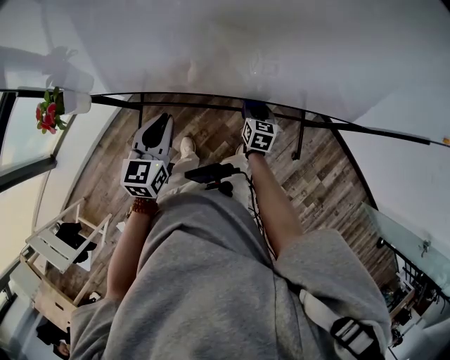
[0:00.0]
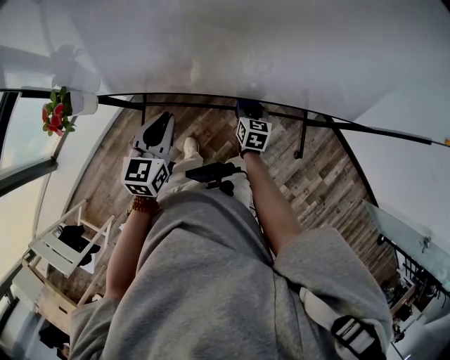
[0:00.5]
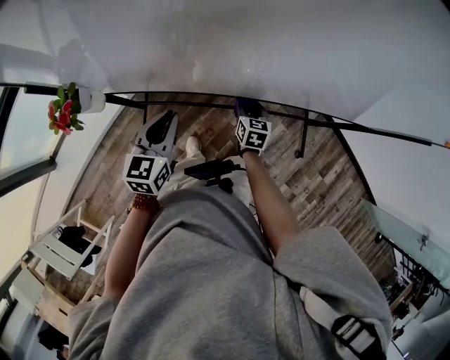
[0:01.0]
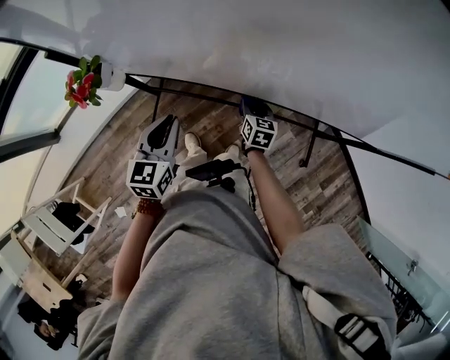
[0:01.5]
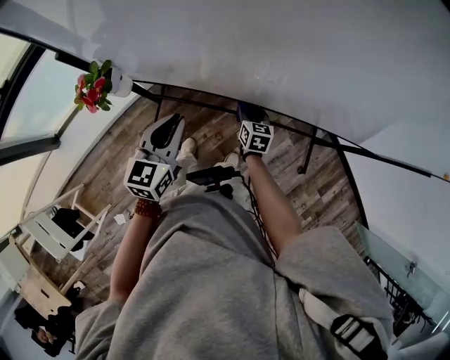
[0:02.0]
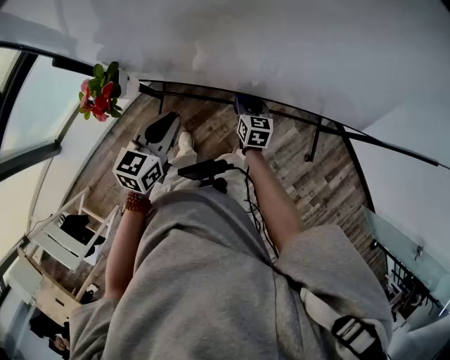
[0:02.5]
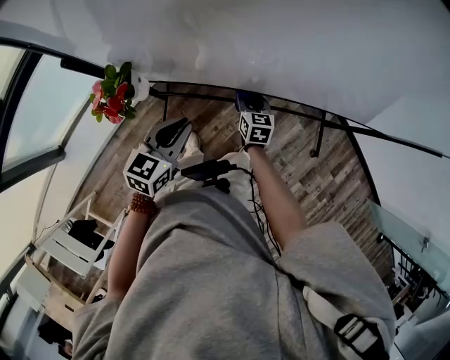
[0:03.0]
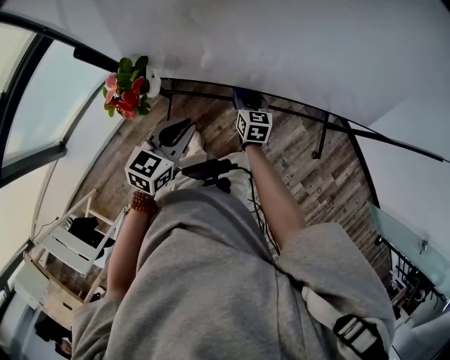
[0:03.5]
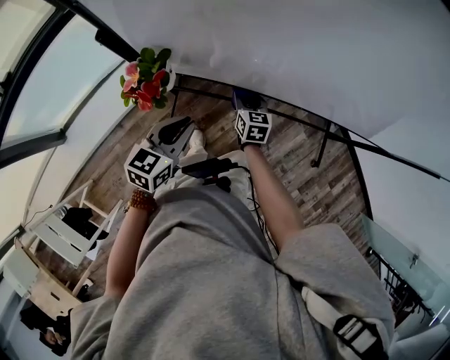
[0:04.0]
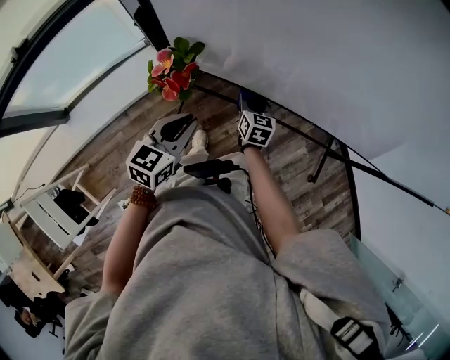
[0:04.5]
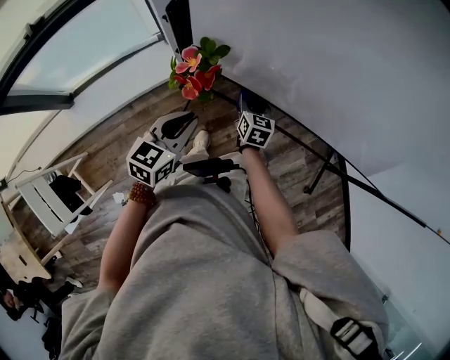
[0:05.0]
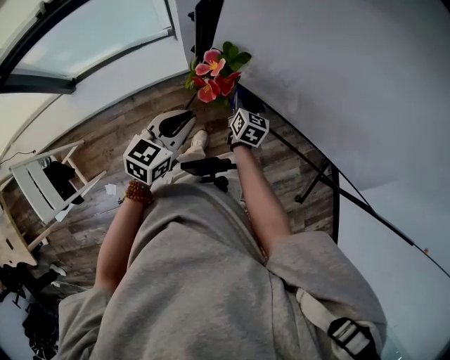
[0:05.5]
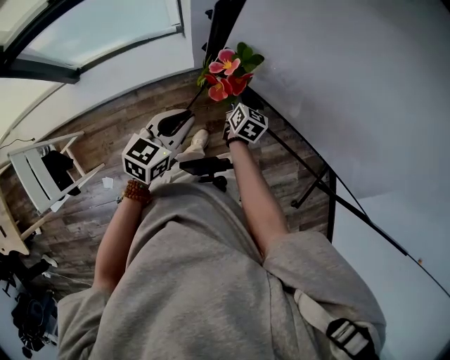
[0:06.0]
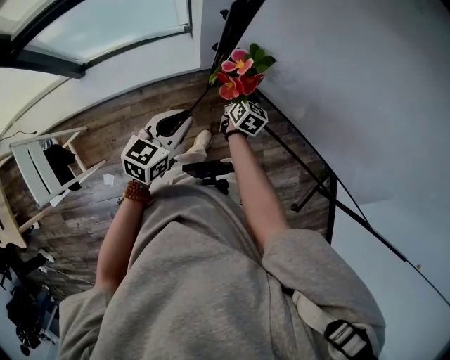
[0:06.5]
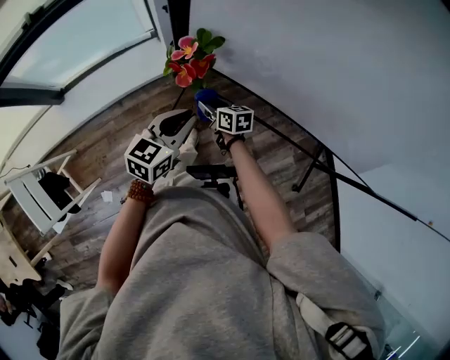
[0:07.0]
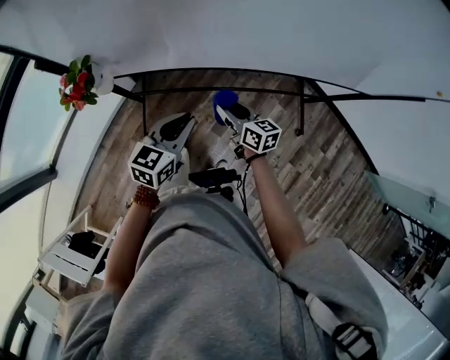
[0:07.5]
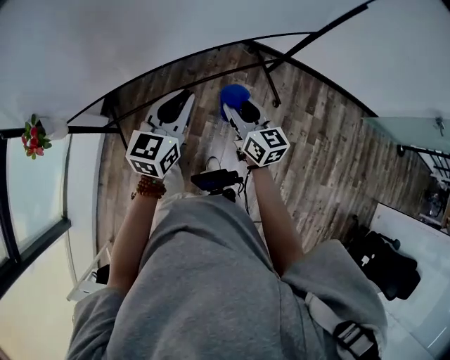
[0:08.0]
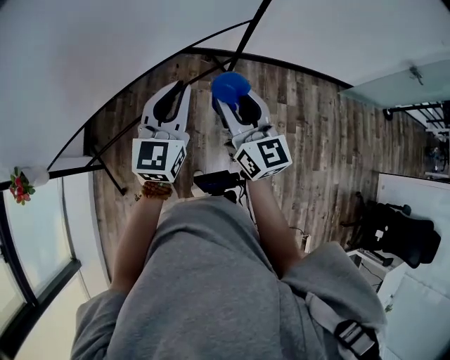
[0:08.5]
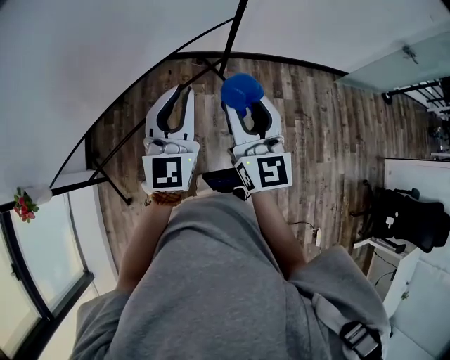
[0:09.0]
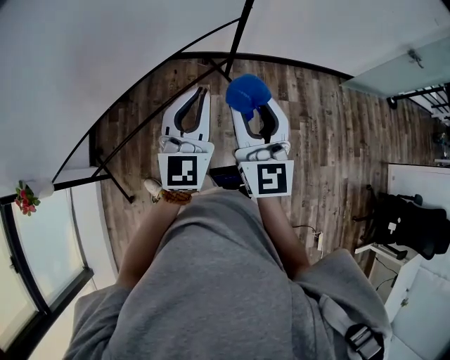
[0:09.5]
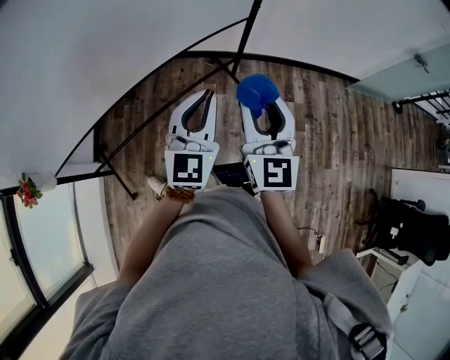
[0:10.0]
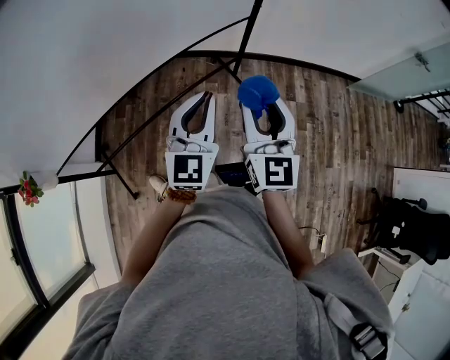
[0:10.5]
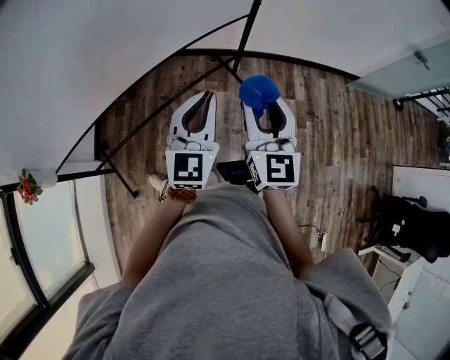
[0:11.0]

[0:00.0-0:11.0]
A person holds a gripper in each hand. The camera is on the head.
0:00.0 to 0:02.0: The right gripper travels to the left by approximately 20 cm; the left gripper shifts about 10 cm to the left.
0:02.0 to 0:03.5: The right gripper heads to the left, covering roughly 15 cm, while the left gripper shifts some 10 cm to the left and downward, and turns by approximately 20 degrees.
0:03.5 to 0:05.5: Both grippers move to the left, approximately 15 cm. The left gripper changes its angle by roughly 20 degrees.
0:05.5 to 0:07.5: The right gripper moves about 30 cm, and changes its angle by about 20 degrees; the left gripper changes place by approximately 25 cm, and turns by approximately 30 degrees.
0:07.5 to 0:09.0: The two grippers travel together, about 40 cm. The right gripper rotates about 70 degrees. The left gripper rotates about 40 degrees.
0:09.0 to 0:11.0: The left gripper moves some 5 cm.

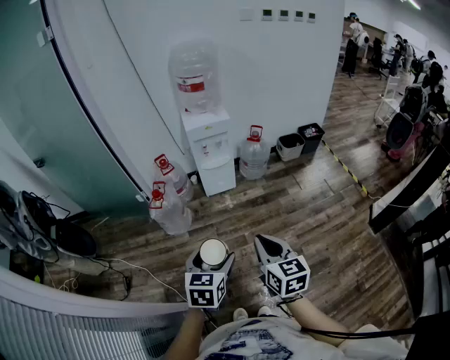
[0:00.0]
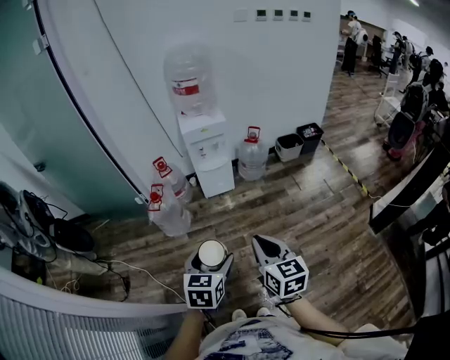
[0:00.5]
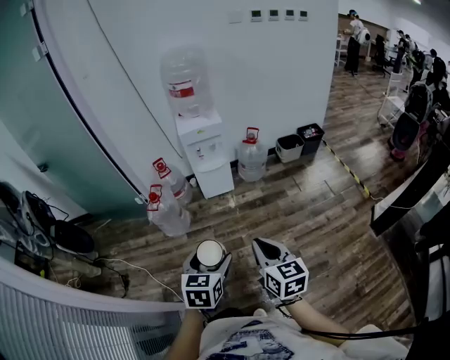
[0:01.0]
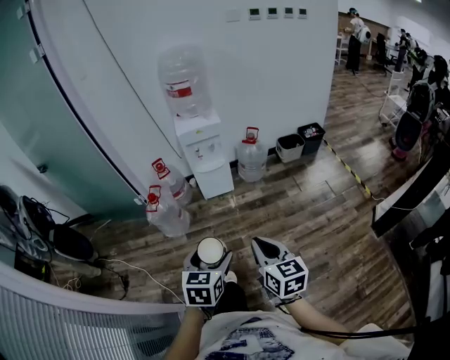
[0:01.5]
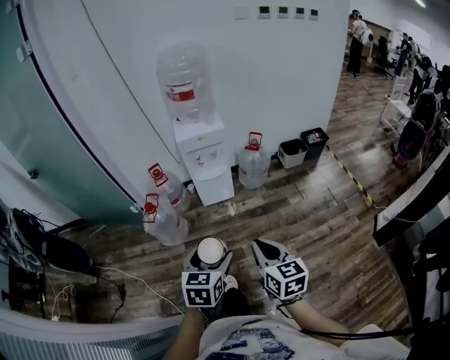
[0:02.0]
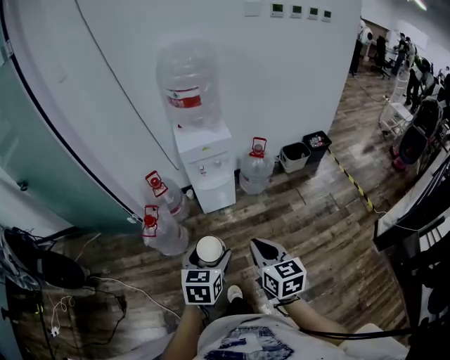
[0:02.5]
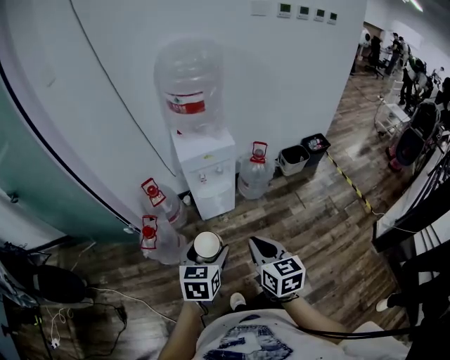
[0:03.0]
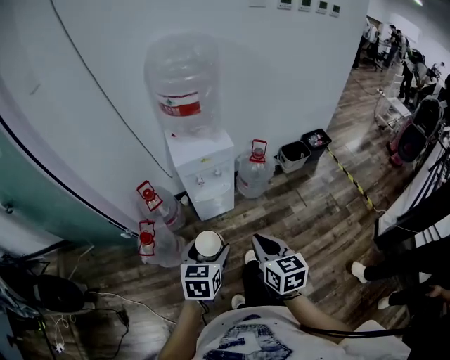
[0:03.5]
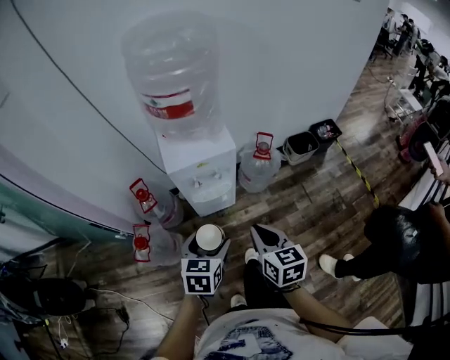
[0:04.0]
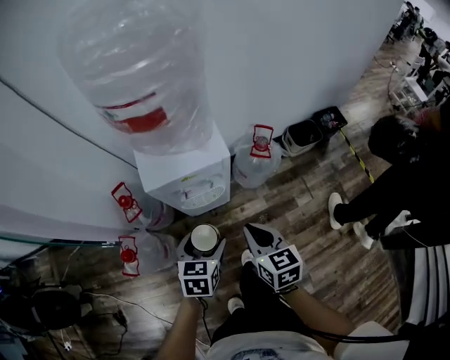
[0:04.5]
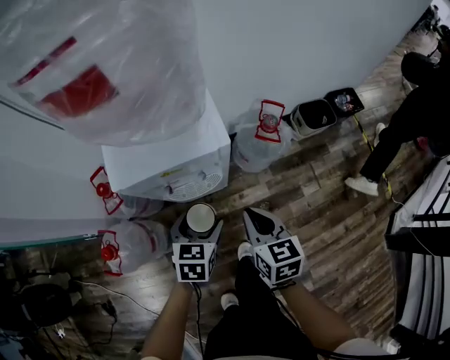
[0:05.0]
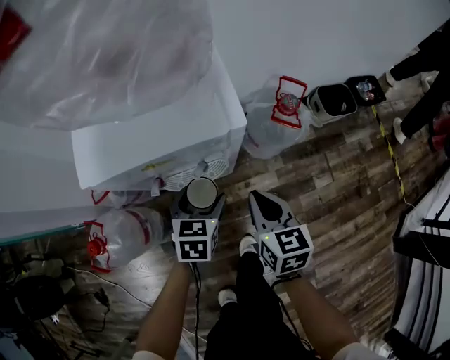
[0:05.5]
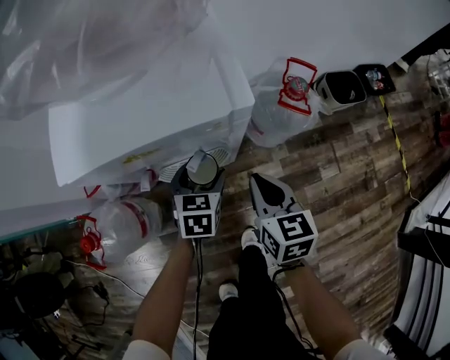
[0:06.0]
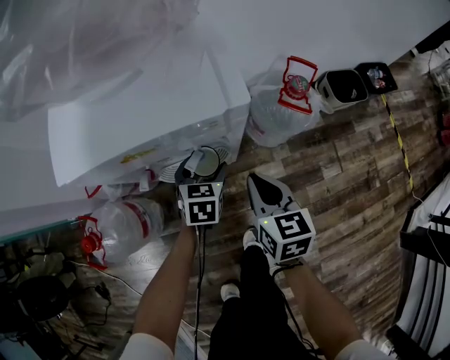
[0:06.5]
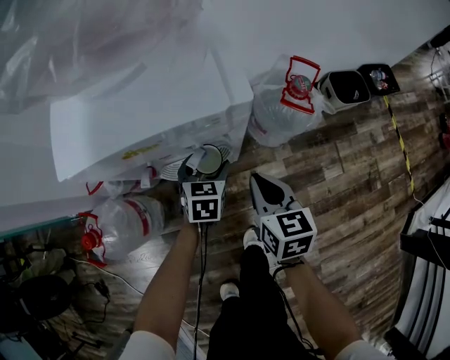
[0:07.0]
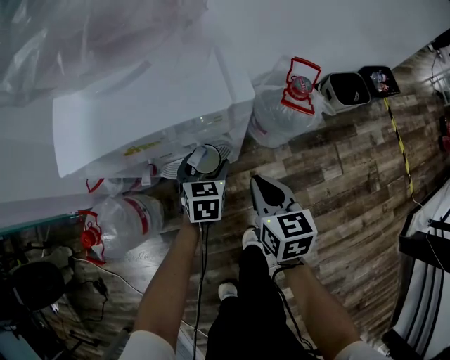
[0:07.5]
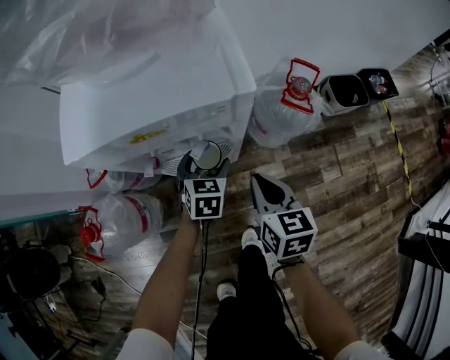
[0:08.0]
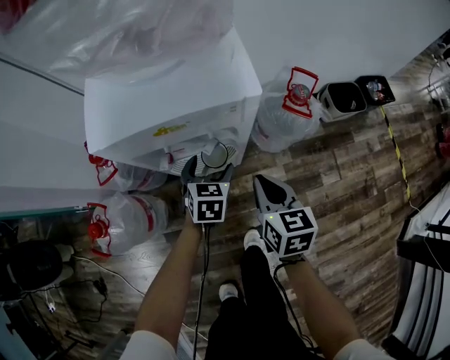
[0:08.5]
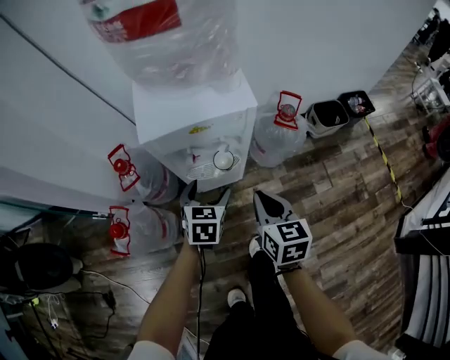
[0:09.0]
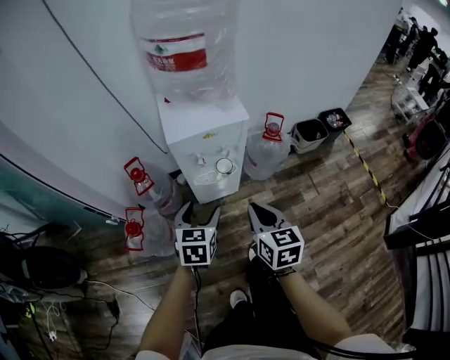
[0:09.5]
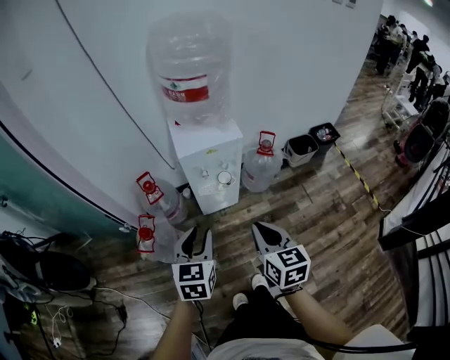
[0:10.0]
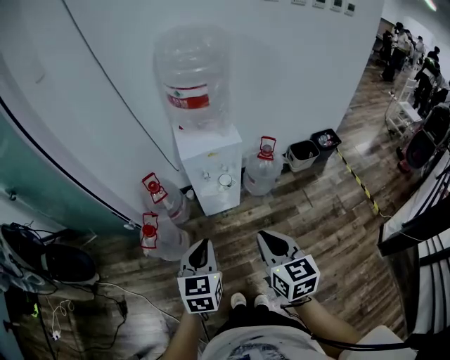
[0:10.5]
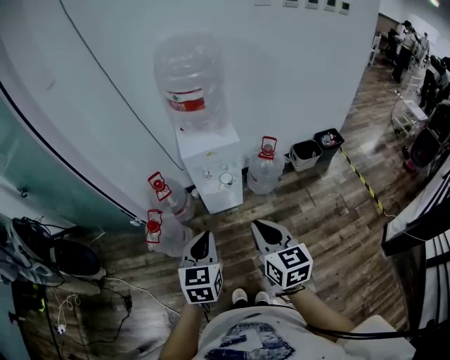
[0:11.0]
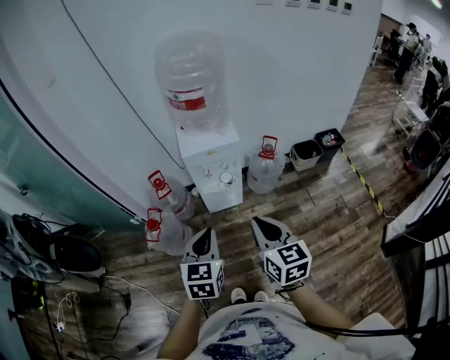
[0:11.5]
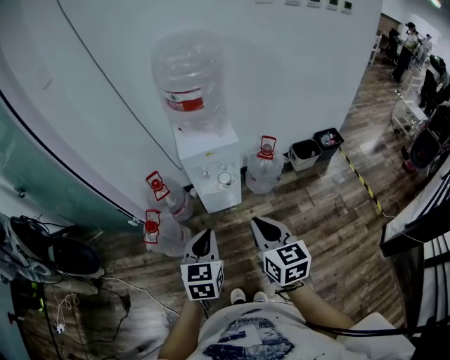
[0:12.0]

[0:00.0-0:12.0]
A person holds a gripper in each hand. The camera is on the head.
0:00.0 to 0:02.0: Both grippers travel together forward and to the right, about 15 cm.
0:02.0 to 0:04.0: Both grippers are carried forward, about 40 cm.
0:04.0 to 0:06.0: Both grippers travel together downward and forward, some 50 cm.
0:06.0 to 0:08.0: There are only small adjustments of the grippers.
0:08.0 to 0:10.0: The two grippers go approximately 60 cm upward and backward. The left gripper closes up.
0:10.0 to 0:12.0: The left gripper moves backward, to the right and upward, approximately 10 cm; the right gripper goes some 10 cm upward.

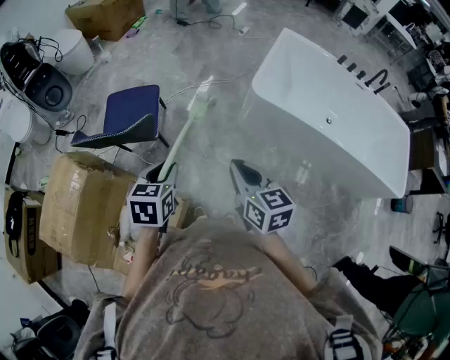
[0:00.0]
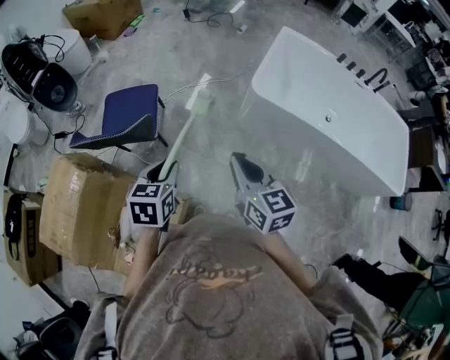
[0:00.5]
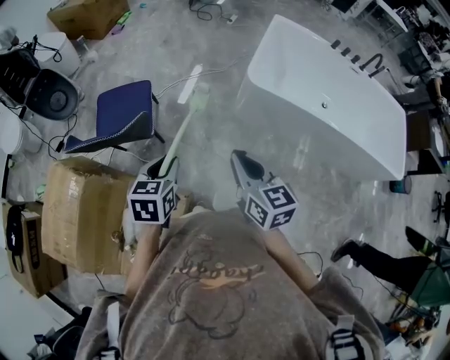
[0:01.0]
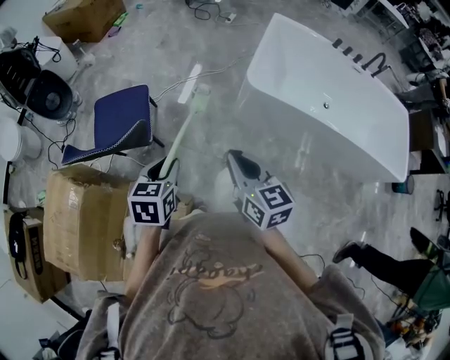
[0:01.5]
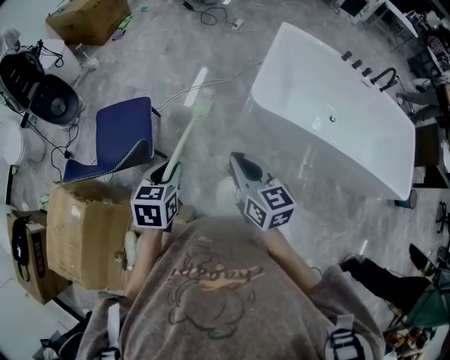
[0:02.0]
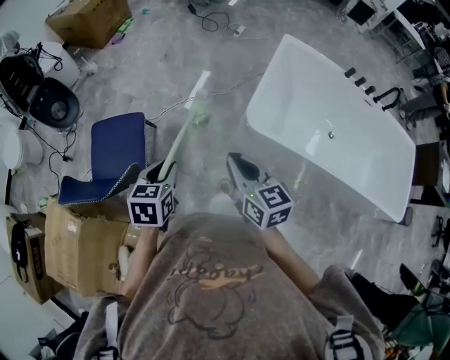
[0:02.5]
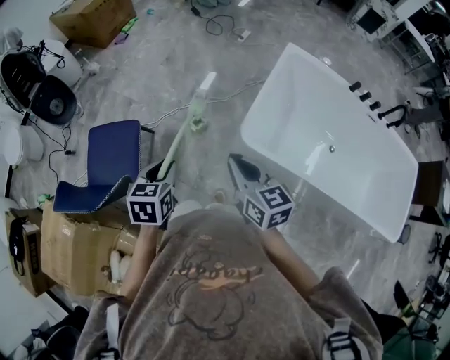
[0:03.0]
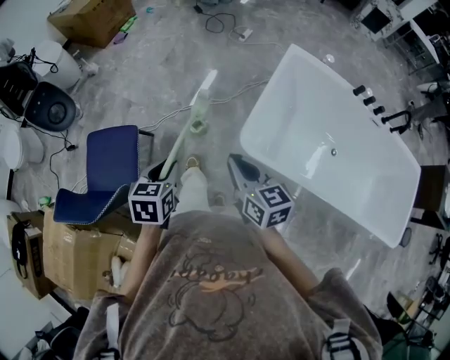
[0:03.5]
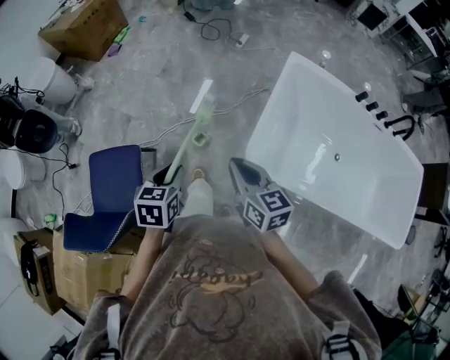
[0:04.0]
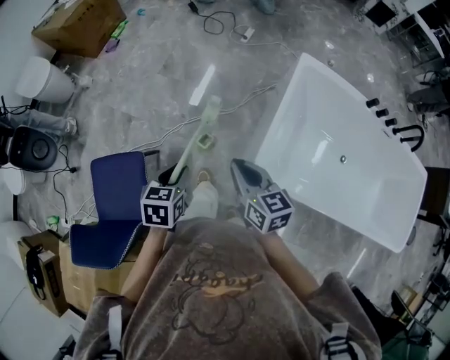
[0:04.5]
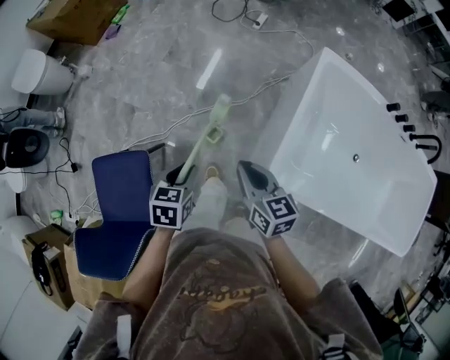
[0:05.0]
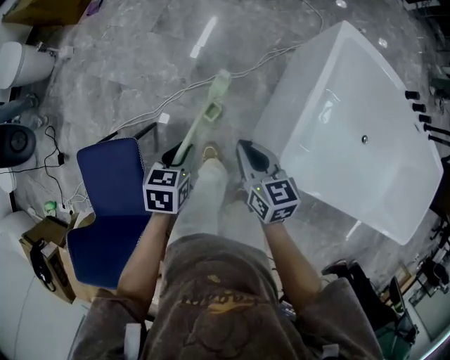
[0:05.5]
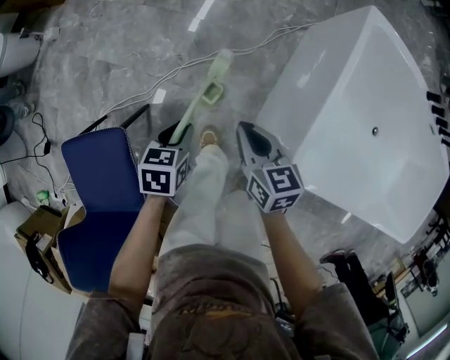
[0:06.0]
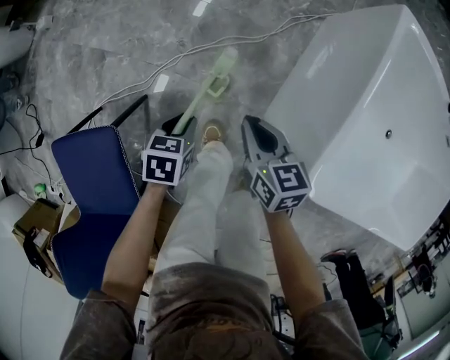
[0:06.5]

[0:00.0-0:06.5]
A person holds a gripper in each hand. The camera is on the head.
0:00.0 to 0:02.0: The grippers both shift forward by about 15 cm.
0:02.0 to 0:04.5: The grippers both shift forward by roughly 35 cm.
0:04.5 to 0:06.5: The grippers both shift downward by some 35 cm.
